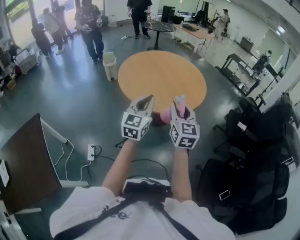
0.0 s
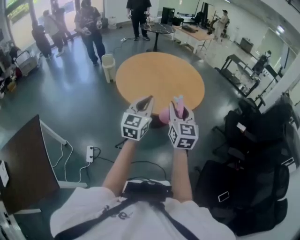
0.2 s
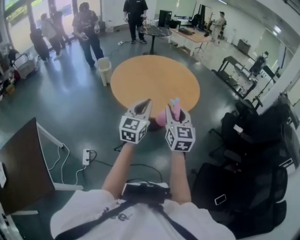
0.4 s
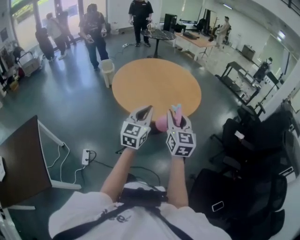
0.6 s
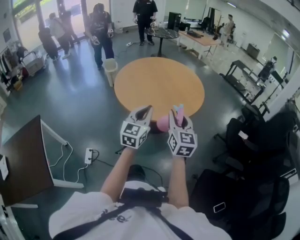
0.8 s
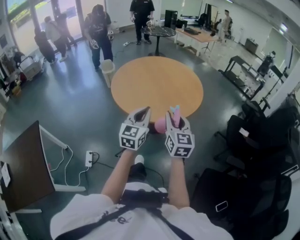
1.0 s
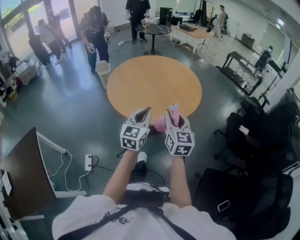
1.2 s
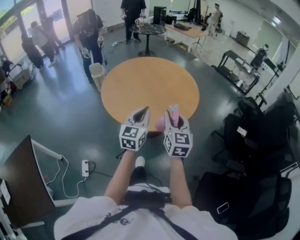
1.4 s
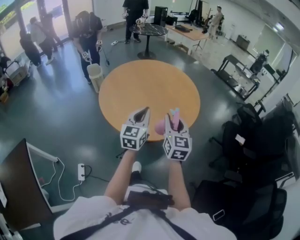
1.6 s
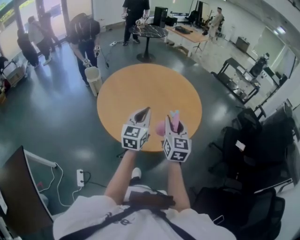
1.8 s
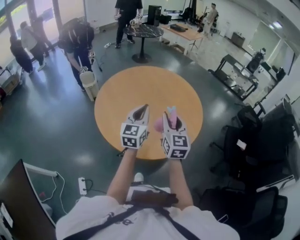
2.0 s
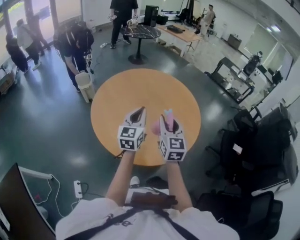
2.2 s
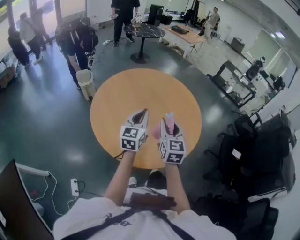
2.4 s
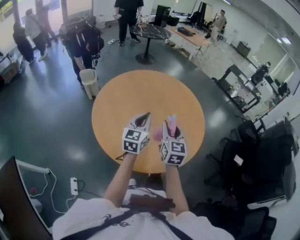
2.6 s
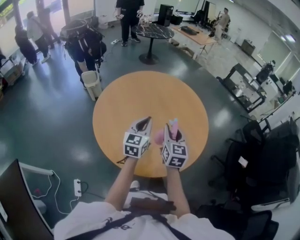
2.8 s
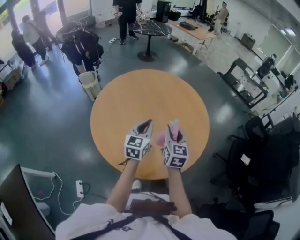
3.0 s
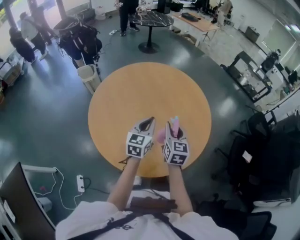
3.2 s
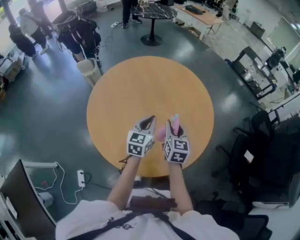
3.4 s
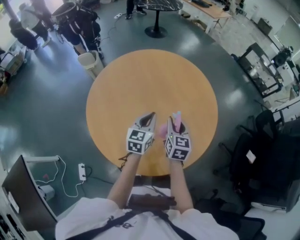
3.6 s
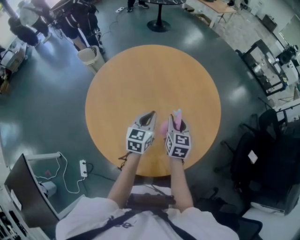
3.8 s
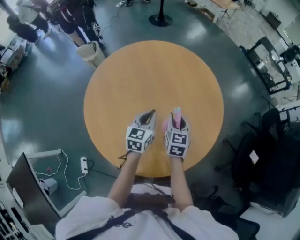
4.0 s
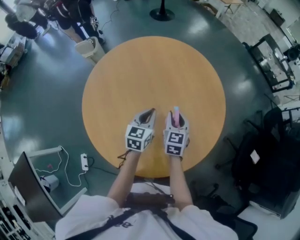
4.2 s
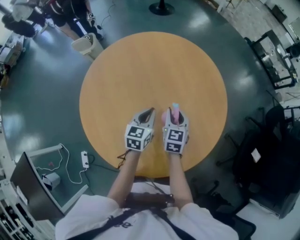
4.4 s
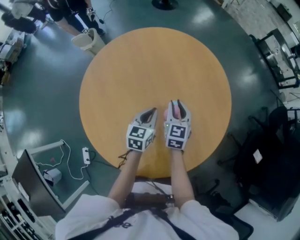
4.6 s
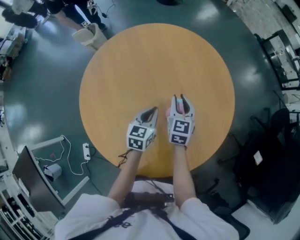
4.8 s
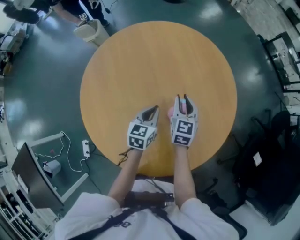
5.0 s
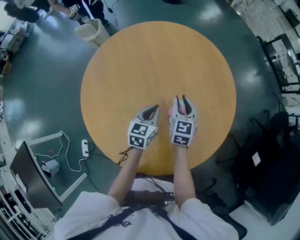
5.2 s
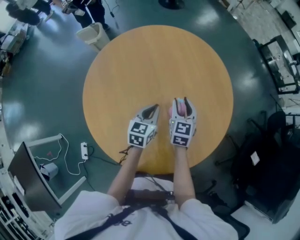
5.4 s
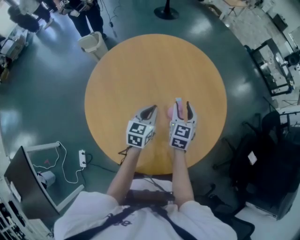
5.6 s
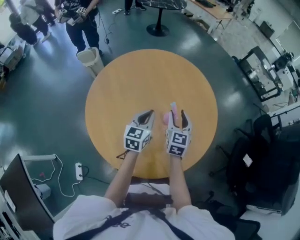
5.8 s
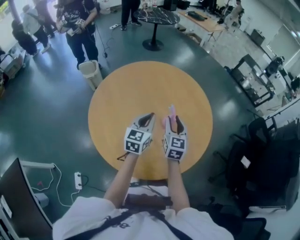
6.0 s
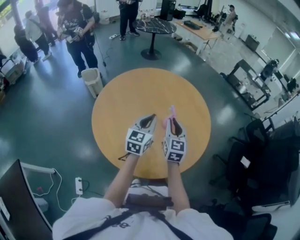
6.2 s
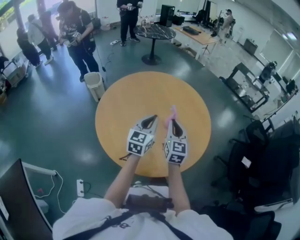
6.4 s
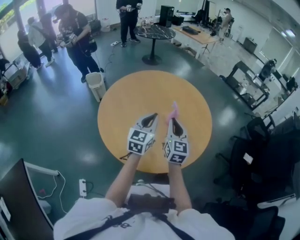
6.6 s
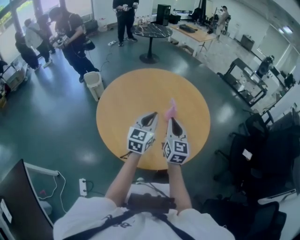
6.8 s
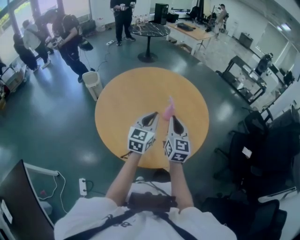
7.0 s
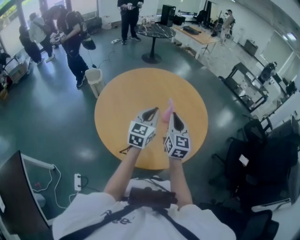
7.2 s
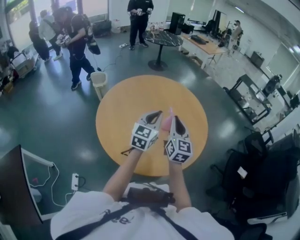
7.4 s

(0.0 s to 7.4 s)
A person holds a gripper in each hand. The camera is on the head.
0.0 s - 1.4 s: The left gripper travels forward, to the right and downward by about 15 cm; the right gripper heads forward and to the right, covering some 15 cm.
1.4 s - 3.0 s: Both grippers move forward, approximately 30 cm.
3.0 s - 4.4 s: The left gripper goes about 15 cm downward and forward. The right gripper shifts about 20 cm forward and downward.
4.4 s - 6.0 s: The left gripper goes approximately 10 cm upward; the right gripper is displaced upward and backward by about 10 cm.
6.0 s - 7.4 s: Both grippers move upward and backward, some 10 cm. The right gripper closes its fingers.

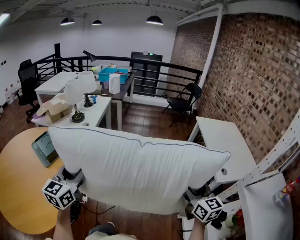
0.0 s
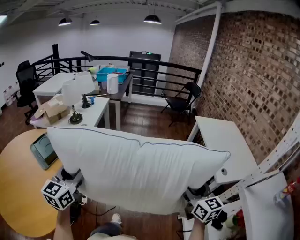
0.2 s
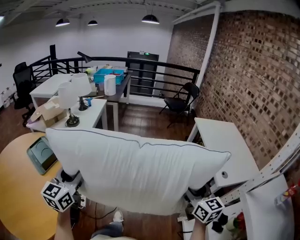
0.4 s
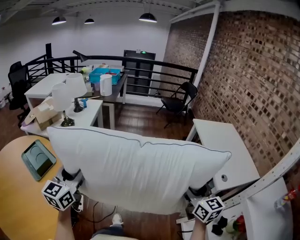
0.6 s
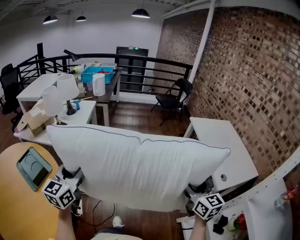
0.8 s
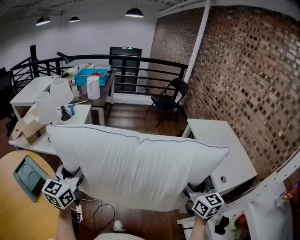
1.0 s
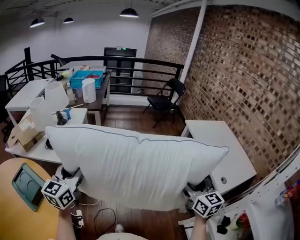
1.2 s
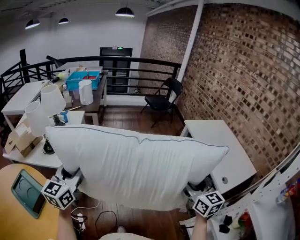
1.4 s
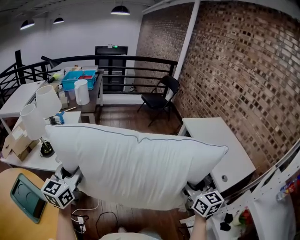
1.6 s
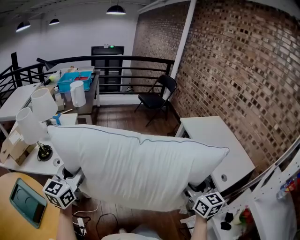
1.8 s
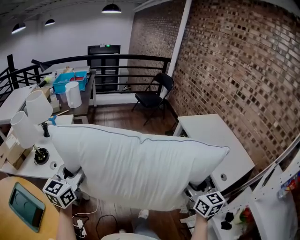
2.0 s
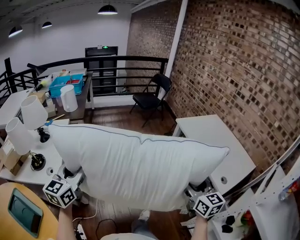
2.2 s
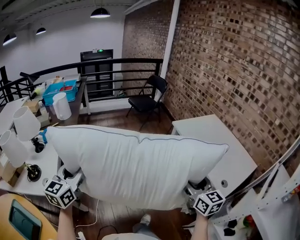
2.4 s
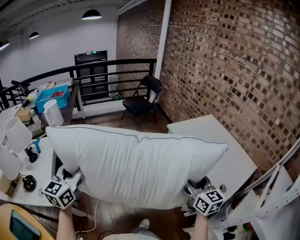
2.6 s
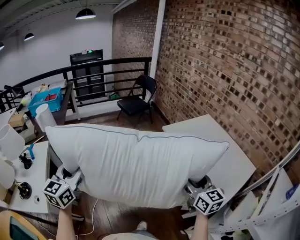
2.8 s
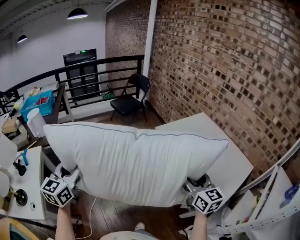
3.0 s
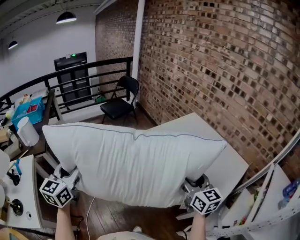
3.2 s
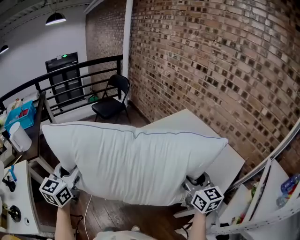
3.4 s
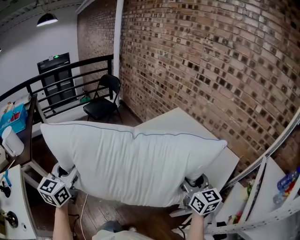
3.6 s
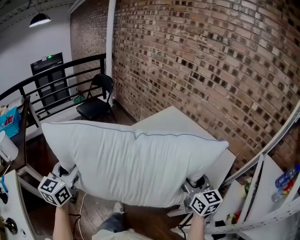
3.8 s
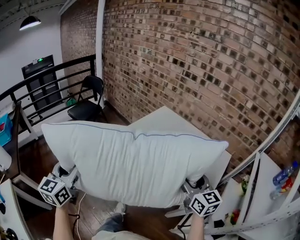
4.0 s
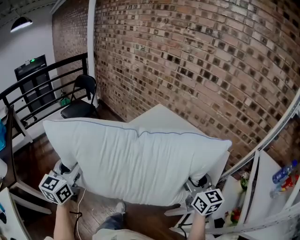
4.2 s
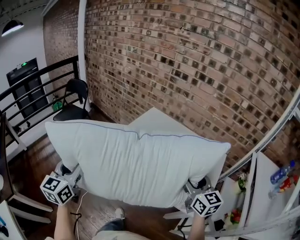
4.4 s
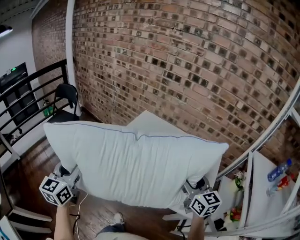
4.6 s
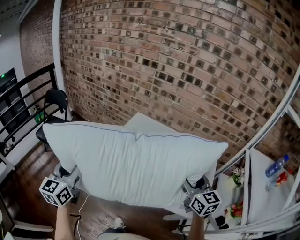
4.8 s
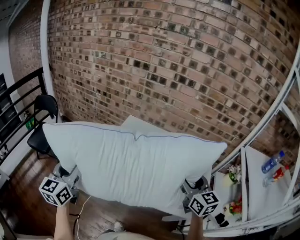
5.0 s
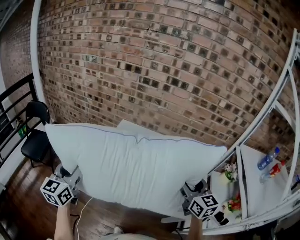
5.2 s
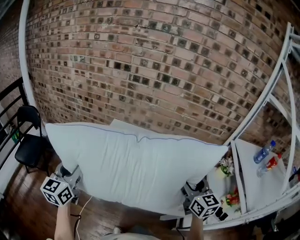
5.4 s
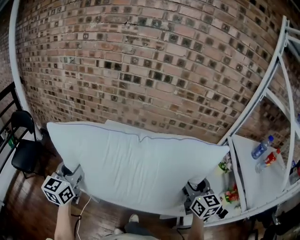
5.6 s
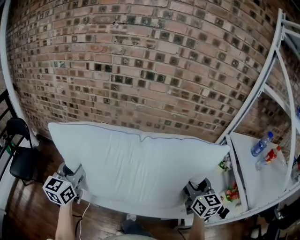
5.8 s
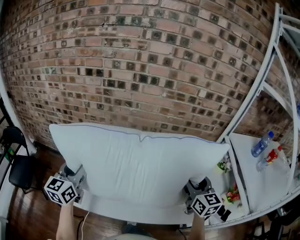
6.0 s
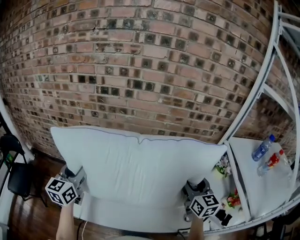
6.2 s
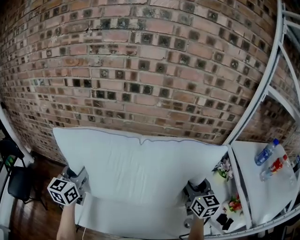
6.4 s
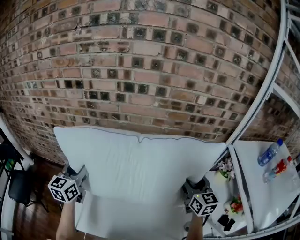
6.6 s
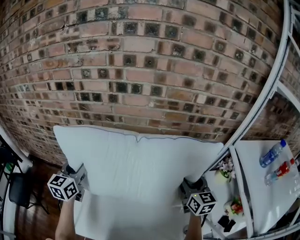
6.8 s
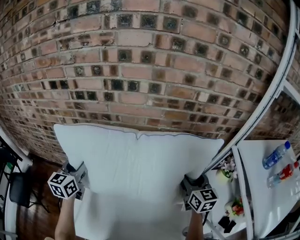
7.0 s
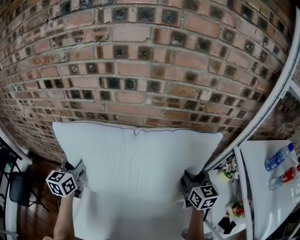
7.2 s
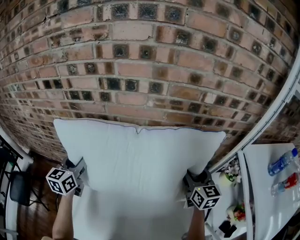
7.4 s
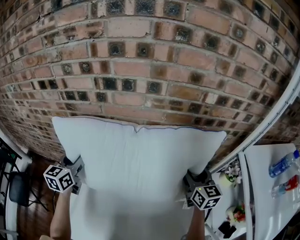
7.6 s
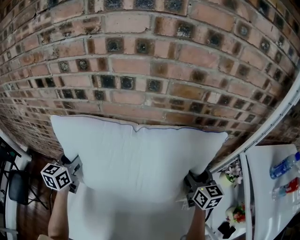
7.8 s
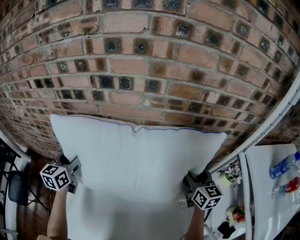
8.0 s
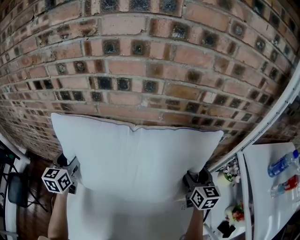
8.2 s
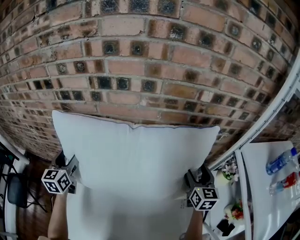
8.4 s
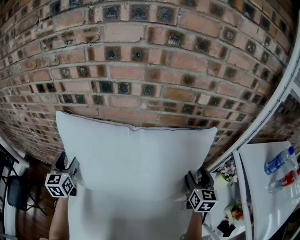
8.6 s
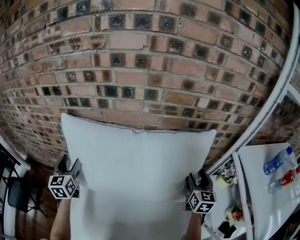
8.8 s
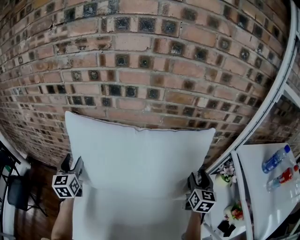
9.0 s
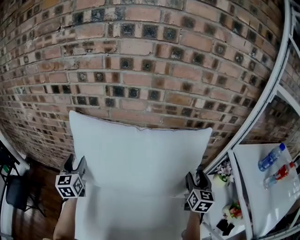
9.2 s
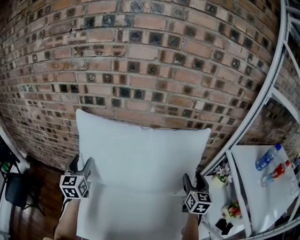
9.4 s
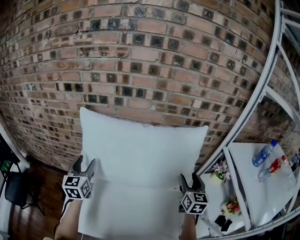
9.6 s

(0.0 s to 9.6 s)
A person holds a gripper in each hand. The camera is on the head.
0.0 s - 1.6 s: Both grippers travel together forward, some 30 cm.
1.6 s - 3.2 s: The right gripper travels to the right and forward by about 35 cm, while the left gripper heads forward and to the right, covering about 40 cm.
3.2 s - 4.8 s: The left gripper changes place by roughly 40 cm, and rotates roughly 30 degrees; the right gripper shifts by about 25 cm, and swivels approximately 30 degrees.
4.8 s - 6.4 s: The left gripper changes place by about 40 cm, and changes its angle by some 30 degrees; the right gripper changes place by roughly 20 cm, and changes its angle by approximately 30 degrees.
6.4 s - 8.0 s: The left gripper moves forward, about 20 cm, while the right gripper goes about 20 cm forward and downward.
8.0 s - 9.6 s: The grippers both shift backward by about 10 cm.

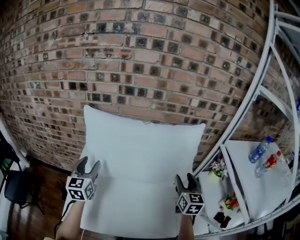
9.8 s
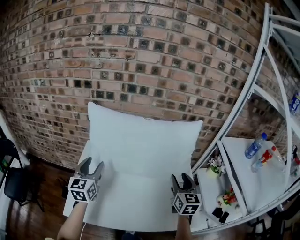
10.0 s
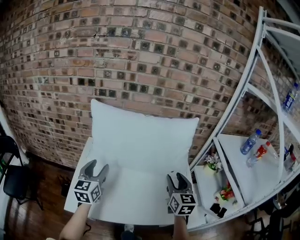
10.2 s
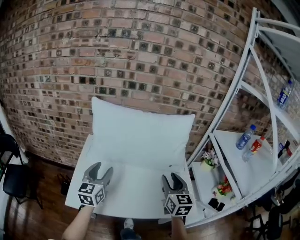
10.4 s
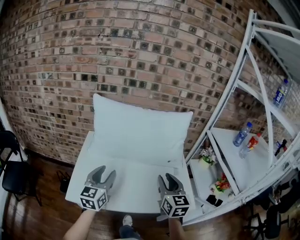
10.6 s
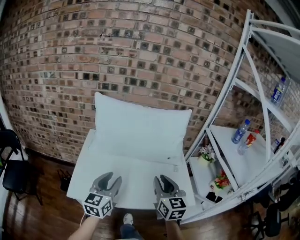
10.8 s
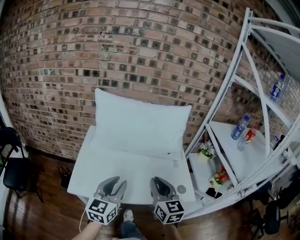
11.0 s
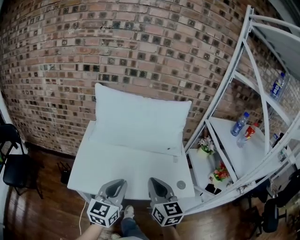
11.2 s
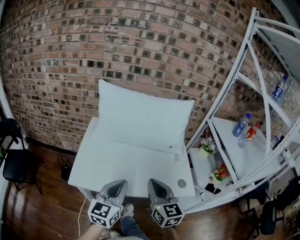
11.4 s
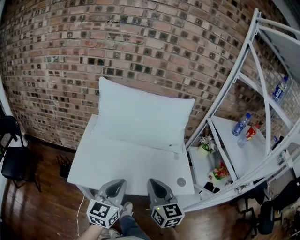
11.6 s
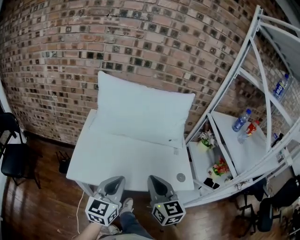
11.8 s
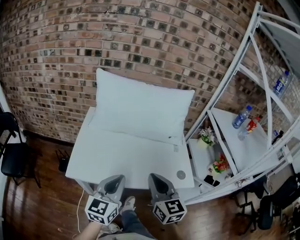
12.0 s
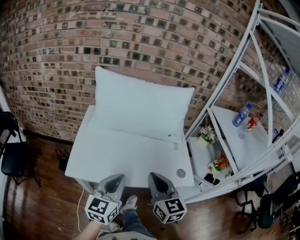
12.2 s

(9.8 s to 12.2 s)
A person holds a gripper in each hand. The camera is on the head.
9.8 s - 11.0 s: The right gripper shifts about 30 cm backward and to the left, and closes, while the left gripper moves backward and to the right, roughly 30 cm, rotates some 20 degrees, and closes.
11.0 s - 12.2 s: The left gripper changes place by approximately 5 cm, and closes its fingers. The right gripper shifts by approximately 5 cm.

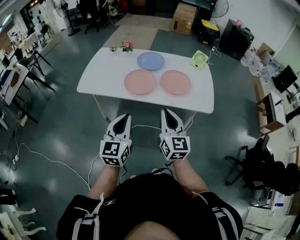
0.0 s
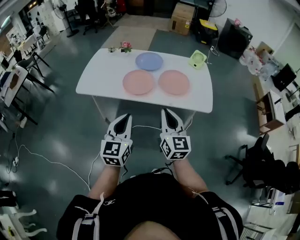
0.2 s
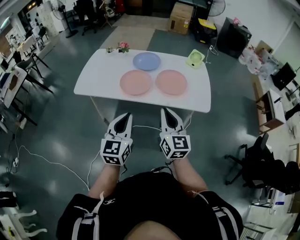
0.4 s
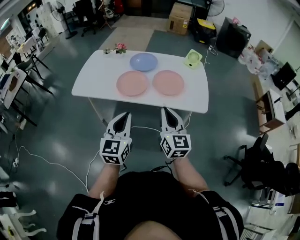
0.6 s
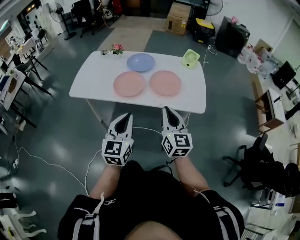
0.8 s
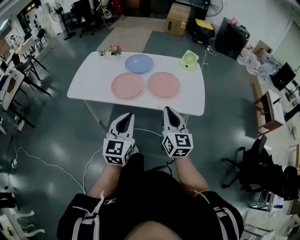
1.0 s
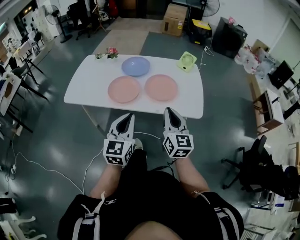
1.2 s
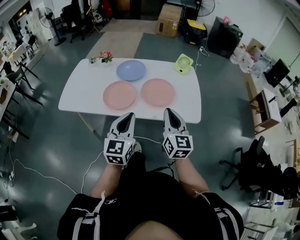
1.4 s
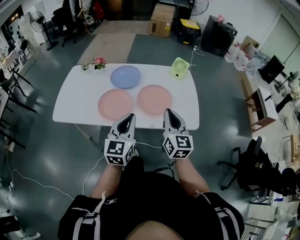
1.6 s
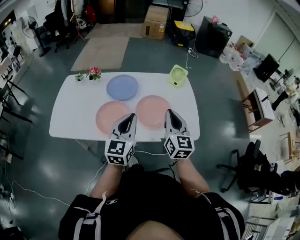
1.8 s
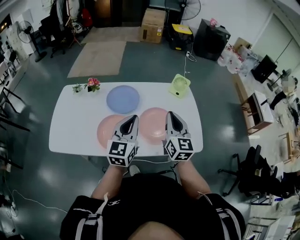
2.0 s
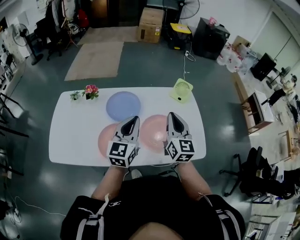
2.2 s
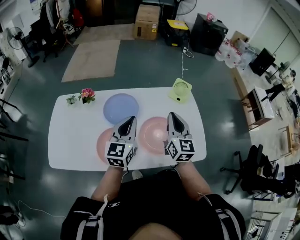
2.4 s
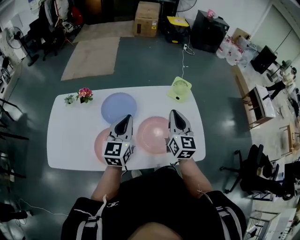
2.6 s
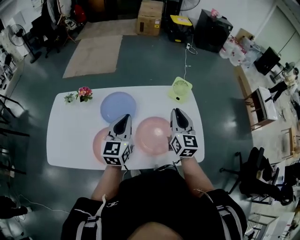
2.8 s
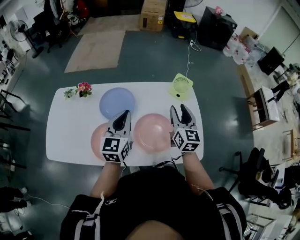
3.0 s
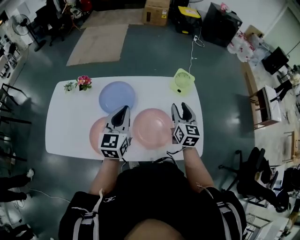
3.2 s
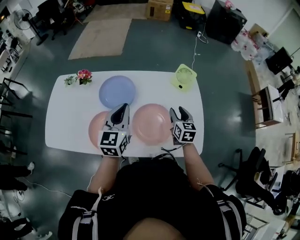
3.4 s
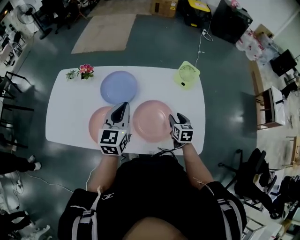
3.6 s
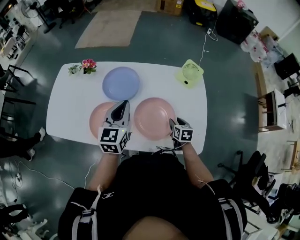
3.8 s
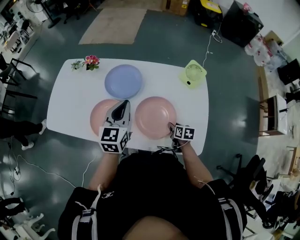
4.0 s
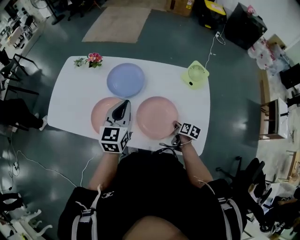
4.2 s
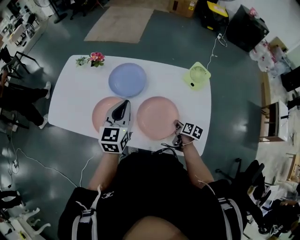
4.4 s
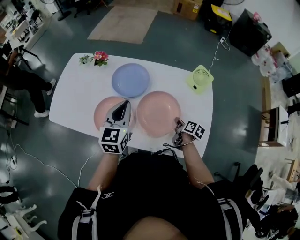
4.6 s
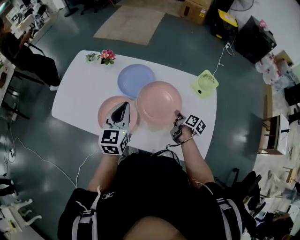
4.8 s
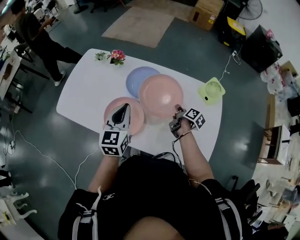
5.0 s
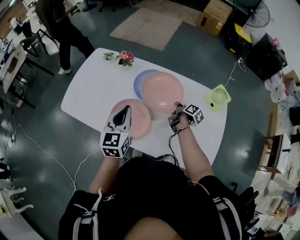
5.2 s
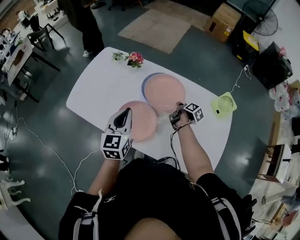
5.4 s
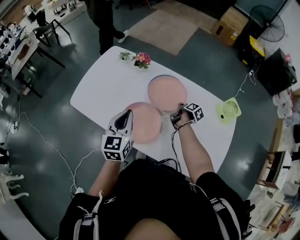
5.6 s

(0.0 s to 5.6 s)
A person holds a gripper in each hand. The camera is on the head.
0.0 s - 1.4 s: The right gripper travels to the right and forward by about 20 cm. Meanwhile the left gripper heads forward and to the right, covering about 20 cm.
1.4 s - 2.8 s: Both grippers are carried forward, approximately 40 cm.
2.8 s - 4.2 s: The right gripper moves downward, roughly 35 cm, tilts its fingers roughly 40 degrees downward, and opens, then closes once more, while the left gripper is displaced downward by about 5 cm.
4.2 s - 5.6 s: The left gripper travels to the left by about 20 cm. The right gripper travels forward and to the left by roughly 30 cm.
